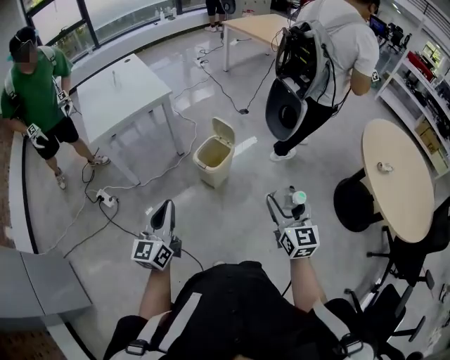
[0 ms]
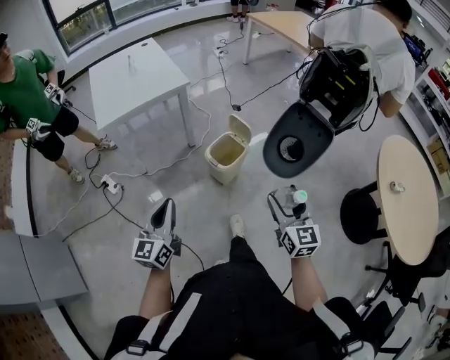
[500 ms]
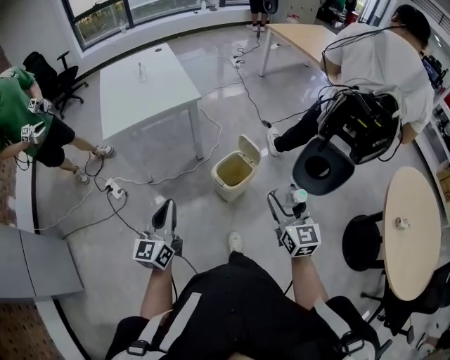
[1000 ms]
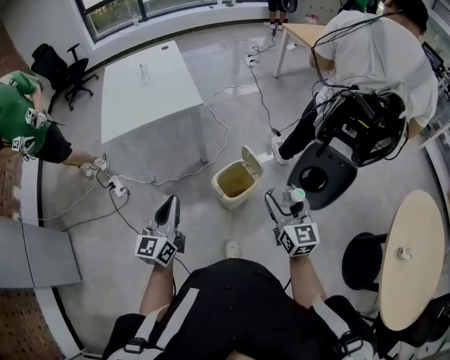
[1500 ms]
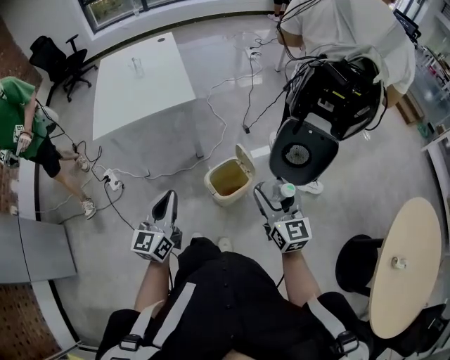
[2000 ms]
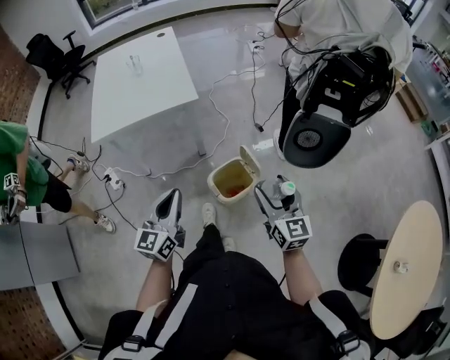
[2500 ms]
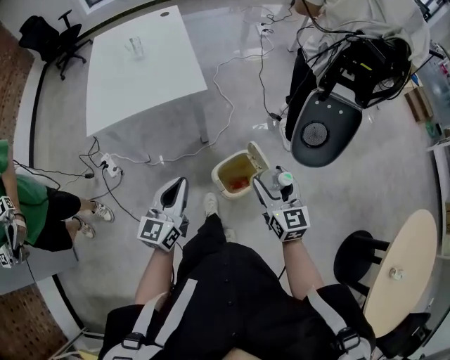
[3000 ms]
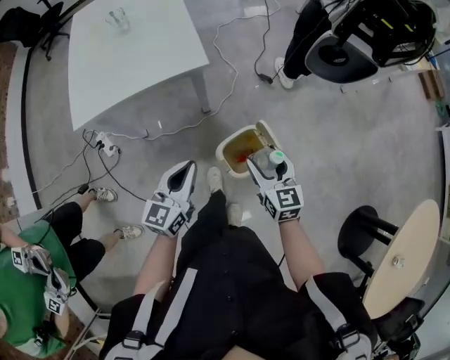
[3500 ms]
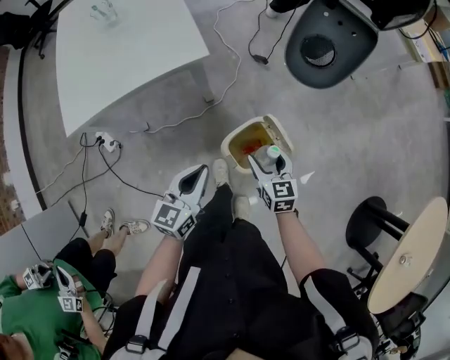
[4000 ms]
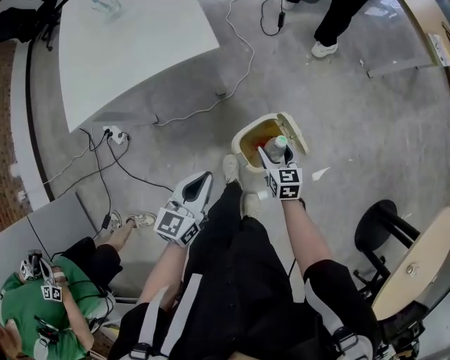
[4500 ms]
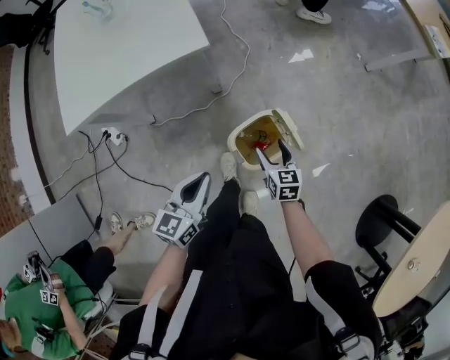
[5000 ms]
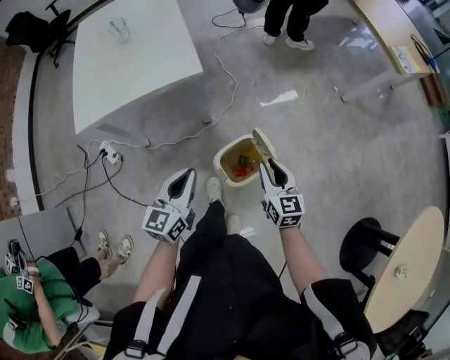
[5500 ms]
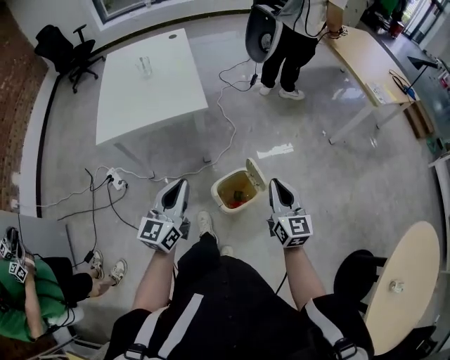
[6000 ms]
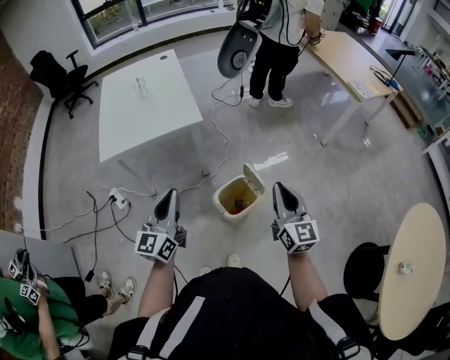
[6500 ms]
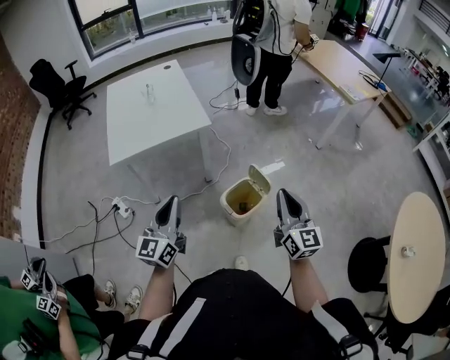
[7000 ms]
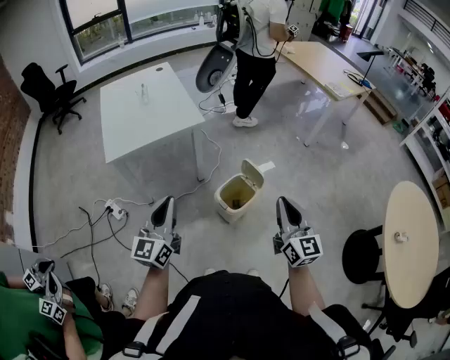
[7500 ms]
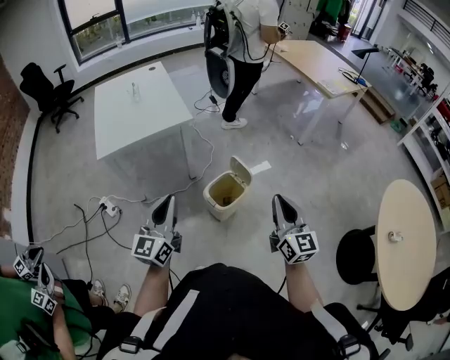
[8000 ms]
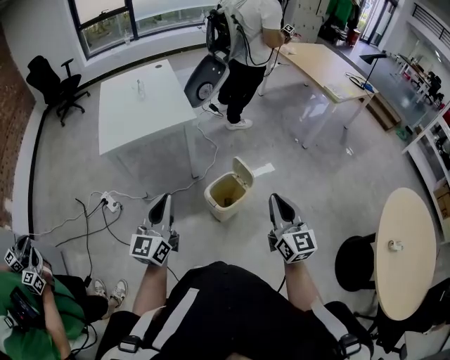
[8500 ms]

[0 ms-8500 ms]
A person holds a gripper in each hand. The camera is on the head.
0 ms to 2000 ms: Both grippers travel together forward, roughly 30 cm. The right gripper changes its angle by approximately 20 degrees.
2000 ms to 4000 ms: The right gripper travels downward, forward and to the left by approximately 35 cm, and changes its angle by roughly 30 degrees. Meanwhile the left gripper travels downward and forward by about 25 cm, and turns by approximately 30 degrees.
4000 ms to 6500 ms: The right gripper heads upward, covering approximately 30 cm, angles its fingers upward, by roughly 30 degrees, and closes; the left gripper moves upward and backward, some 25 cm, and changes its angle by some 30 degrees.
6500 ms to 8500 ms: The grippers both shift backward by some 15 cm.

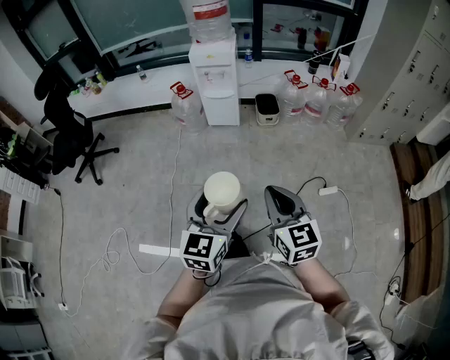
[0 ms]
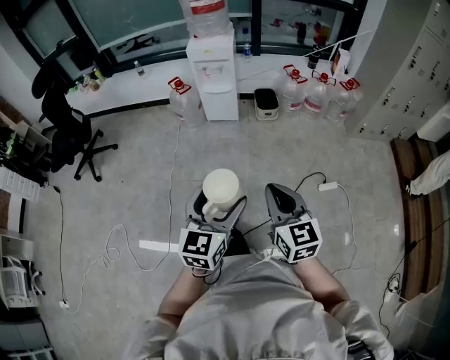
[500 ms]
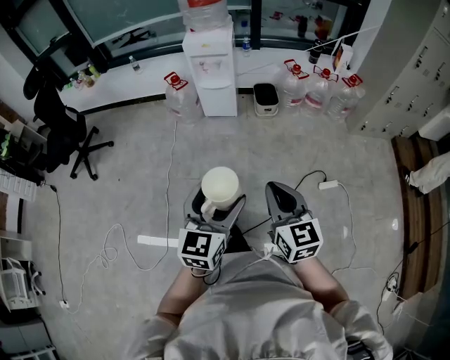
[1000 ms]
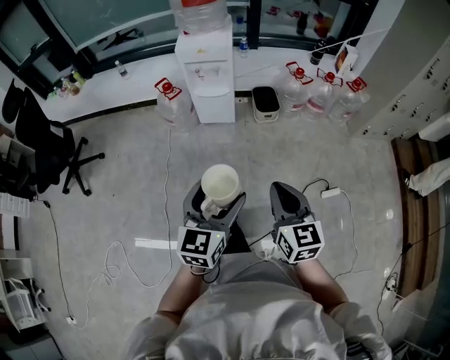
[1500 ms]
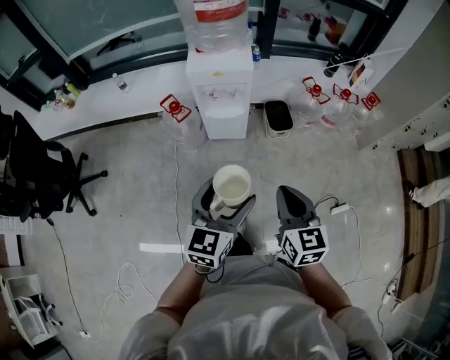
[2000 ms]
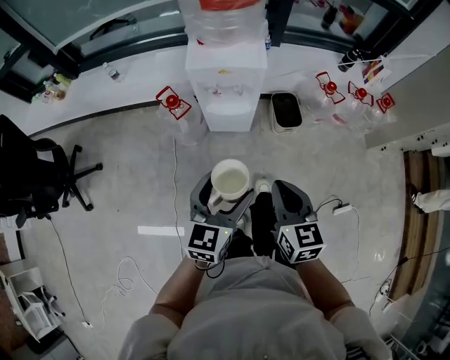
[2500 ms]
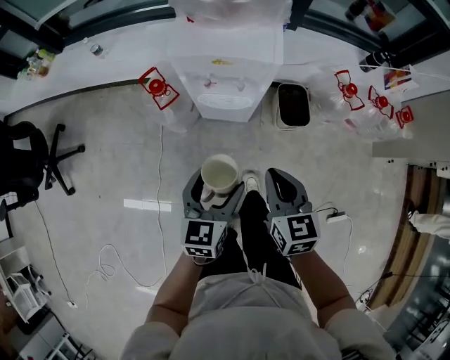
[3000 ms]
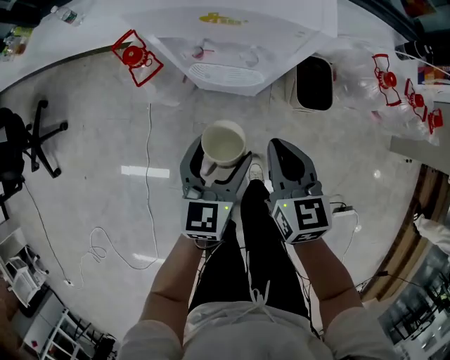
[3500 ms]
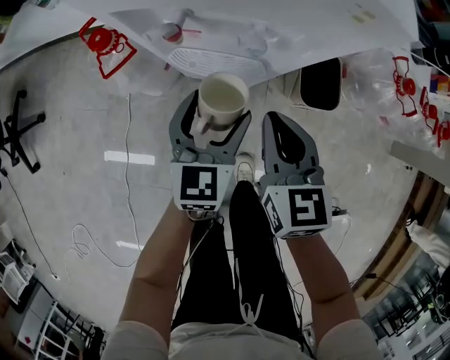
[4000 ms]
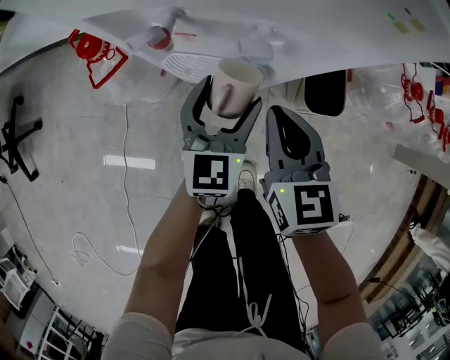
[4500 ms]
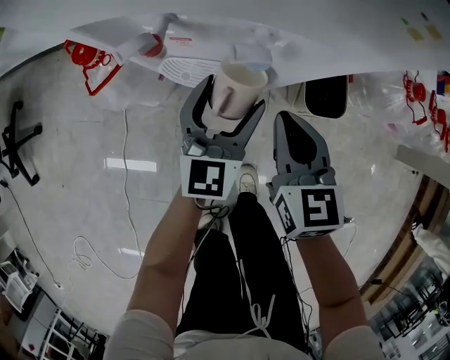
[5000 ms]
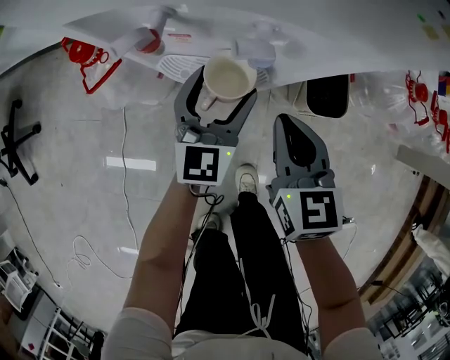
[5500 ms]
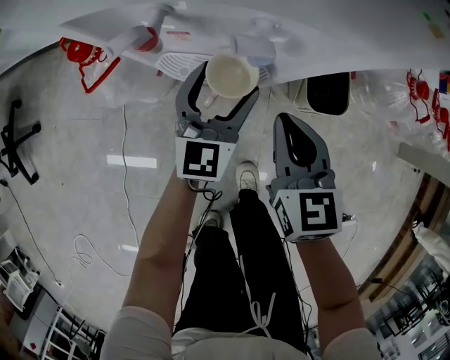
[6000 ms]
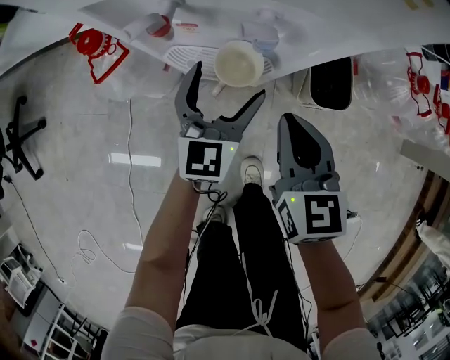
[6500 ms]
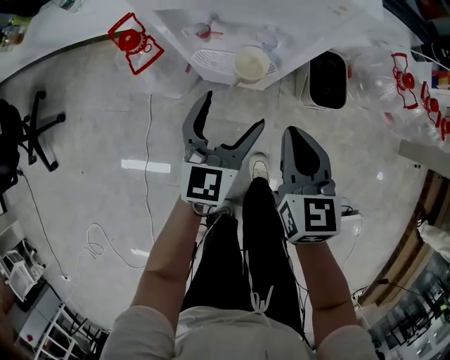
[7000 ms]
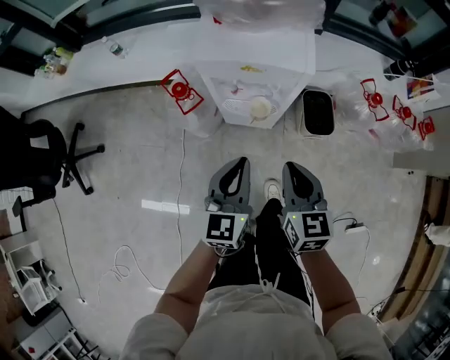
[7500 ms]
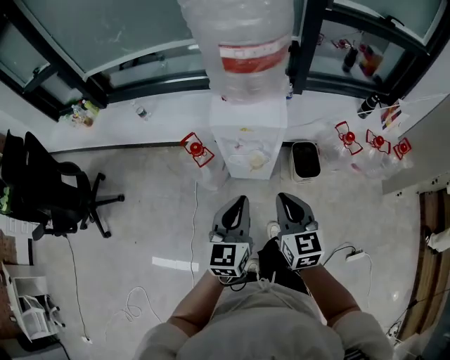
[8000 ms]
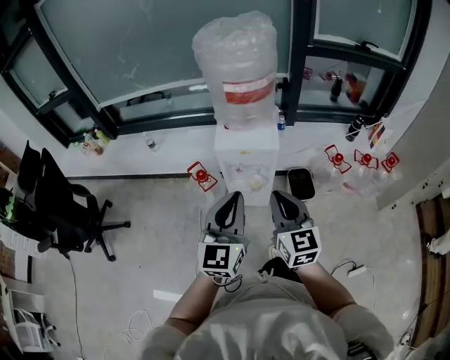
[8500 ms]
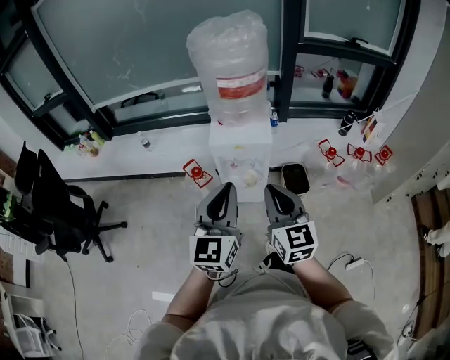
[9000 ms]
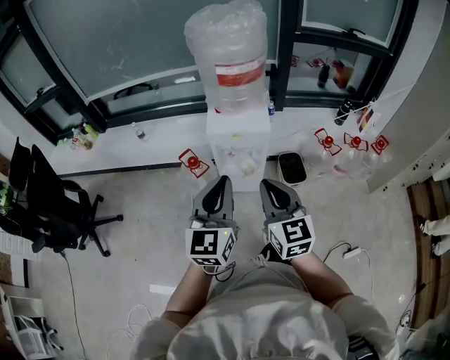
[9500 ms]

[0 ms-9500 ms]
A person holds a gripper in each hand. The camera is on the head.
0 ms to 2000 ms: Both grippers move forward, some 40 cm.
2000 ms to 4000 ms: The pair of grippers is taken forward, about 40 cm. The grippers both shift downward by roughly 40 cm.
4000 ms to 5500 ms: The left gripper heads forward, covering roughly 5 cm, while the right gripper is displaced downward by roughly 5 cm.
5500 ms to 7500 ms: Both grippers move upward and backward, roughly 30 cm. The left gripper closes its fingers.
7500 ms to 9500 ms: The right gripper shifts roughly 30 cm upward and backward, and rotates approximately 20 degrees. The left gripper is displaced upward by about 30 cm.

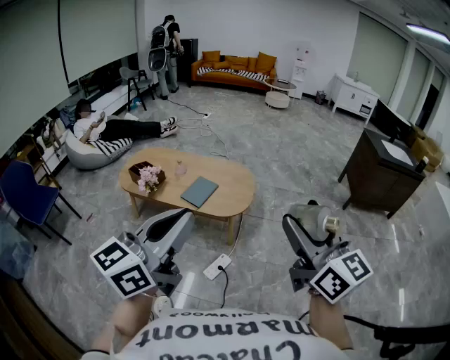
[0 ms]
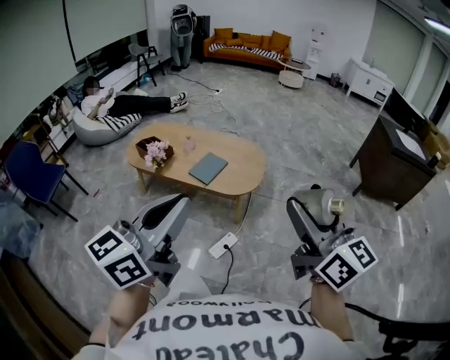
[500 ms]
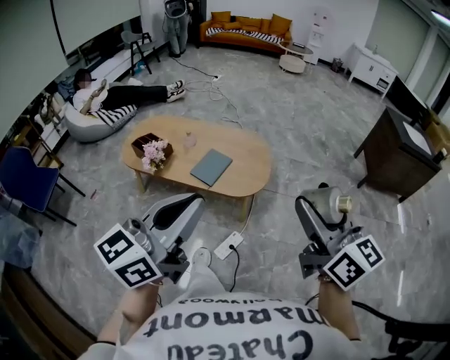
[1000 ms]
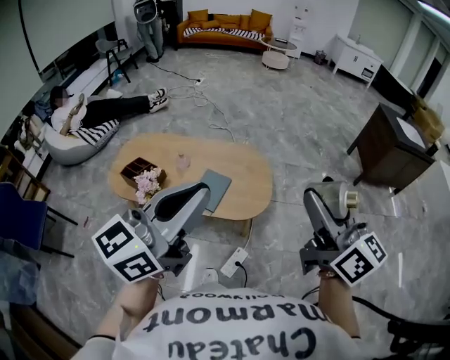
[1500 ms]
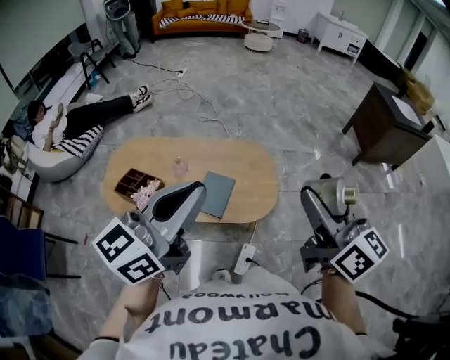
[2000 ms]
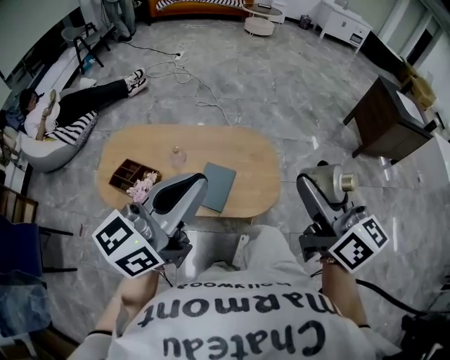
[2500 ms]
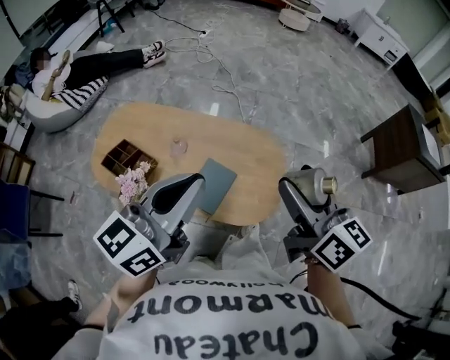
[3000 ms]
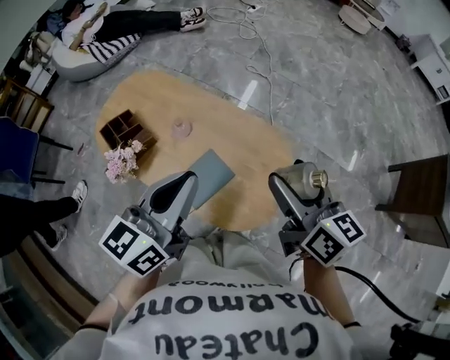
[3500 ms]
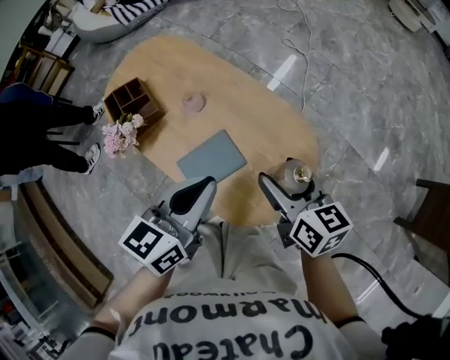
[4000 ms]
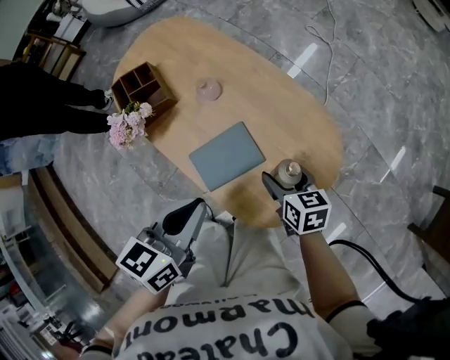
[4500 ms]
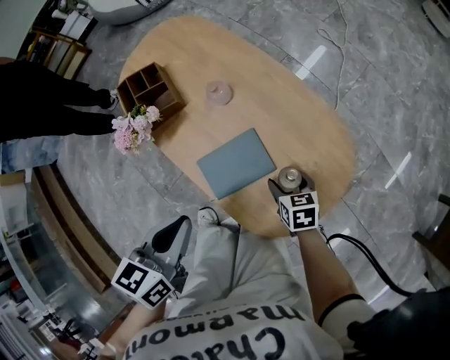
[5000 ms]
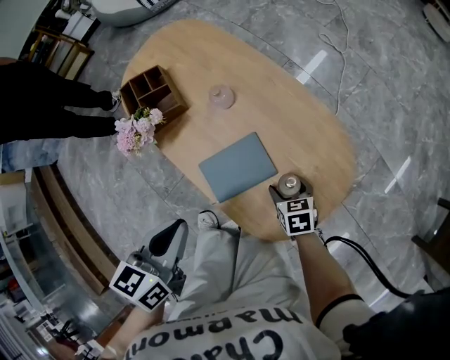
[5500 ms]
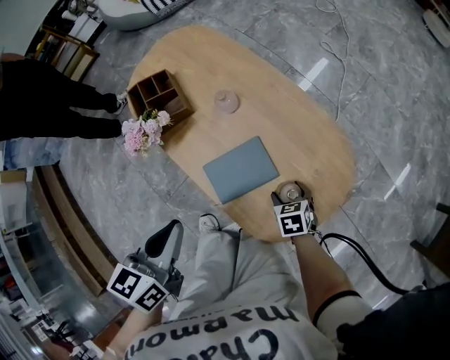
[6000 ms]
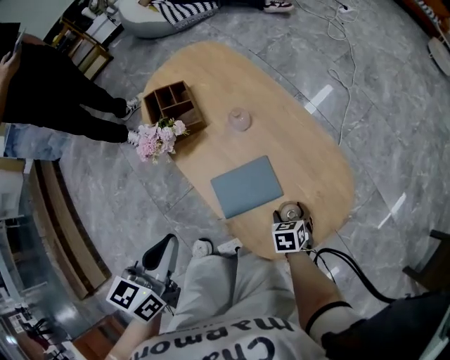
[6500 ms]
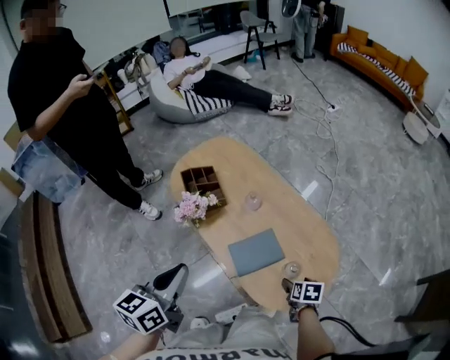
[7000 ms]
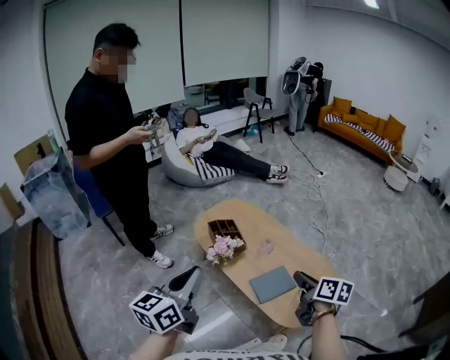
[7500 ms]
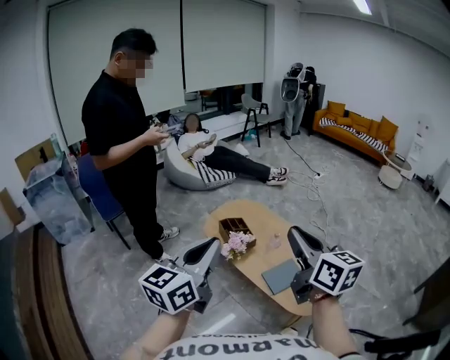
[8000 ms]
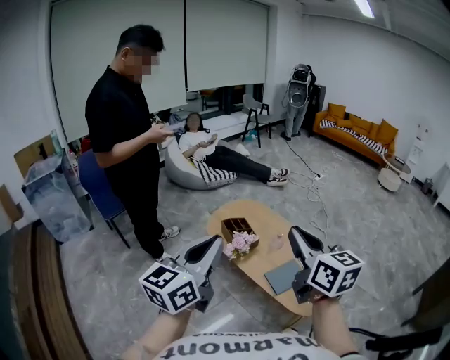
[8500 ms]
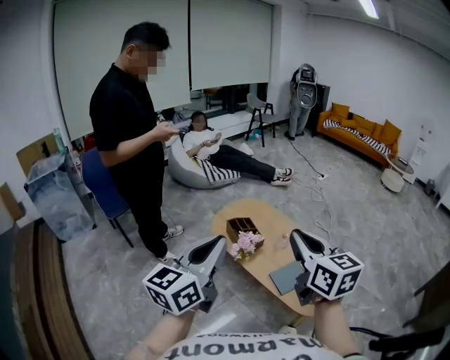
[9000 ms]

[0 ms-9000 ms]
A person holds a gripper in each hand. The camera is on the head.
0 ms to 2000 ms: The two grippers go about 40 cm forward and to the left.
2000 ms to 4500 ms: The right gripper heads downward, covering some 50 cm, and tilts its fingers approximately 50 degrees downward. The left gripper moves downward, some 30 cm, and angles its fingers downward, by about 40 degrees.
4500 ms to 7000 ms: The left gripper travels to the left and upward by approximately 20 cm, and changes its angle by some 20 degrees; the right gripper heads backward, covering about 10 cm, goes downward and returns, some 10 cm each way, and changes its angle by some 30 degrees.
7000 ms to 9000 ms: The left gripper is displaced upward and to the left by roughly 30 cm, and swivels approximately 30 degrees. The right gripper is displaced upward and to the left by about 60 cm, tilts its fingers some 60 degrees upward, and closes its fingers.
